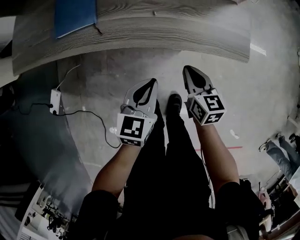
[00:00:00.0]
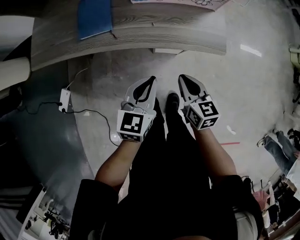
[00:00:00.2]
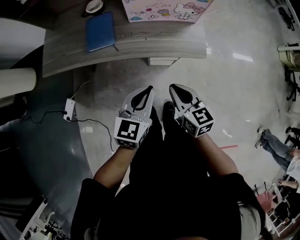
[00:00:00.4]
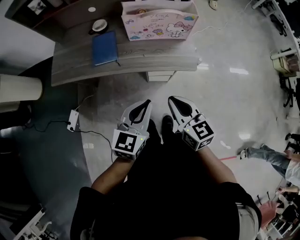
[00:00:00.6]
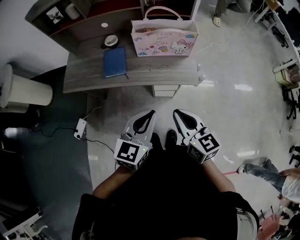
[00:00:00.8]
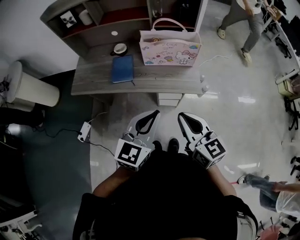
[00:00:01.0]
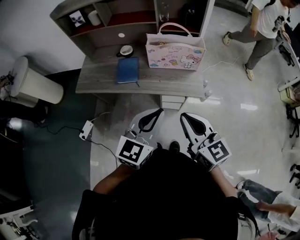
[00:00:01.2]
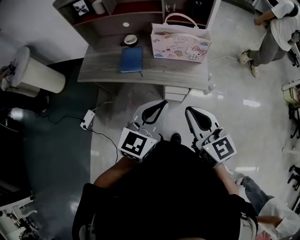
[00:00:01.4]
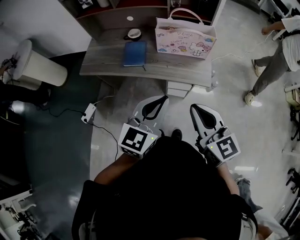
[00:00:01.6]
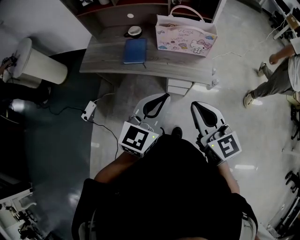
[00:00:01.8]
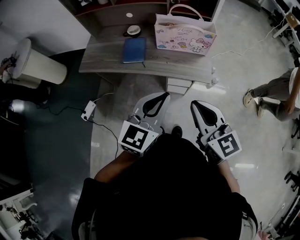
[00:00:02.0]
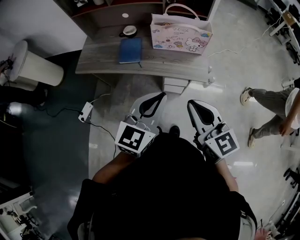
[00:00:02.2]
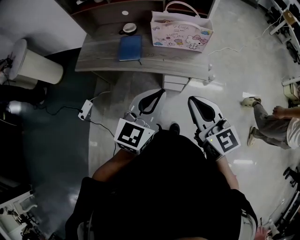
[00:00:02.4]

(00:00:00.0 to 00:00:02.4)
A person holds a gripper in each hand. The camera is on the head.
00:00:00.0 - 00:00:01.2: Both grippers travel together upward, approximately 50 cm. The right gripper rotates approximately 30 degrees; the left gripper rotates approximately 30 degrees.
00:00:01.2 - 00:00:02.4: The grippers move only a little.

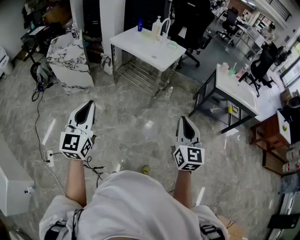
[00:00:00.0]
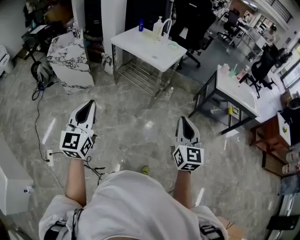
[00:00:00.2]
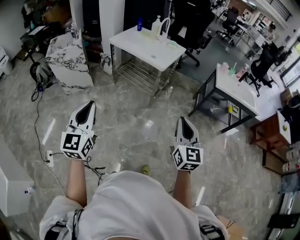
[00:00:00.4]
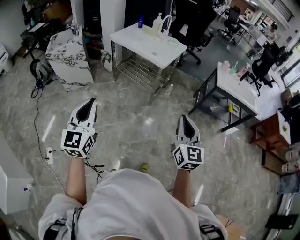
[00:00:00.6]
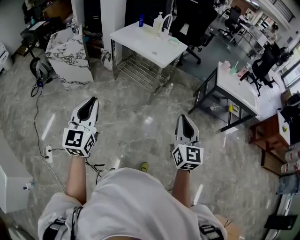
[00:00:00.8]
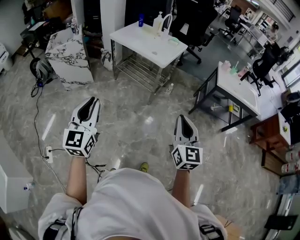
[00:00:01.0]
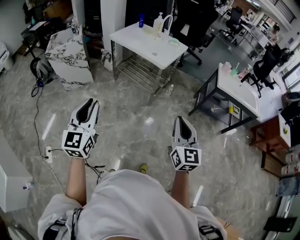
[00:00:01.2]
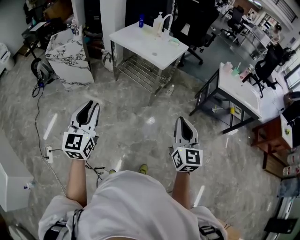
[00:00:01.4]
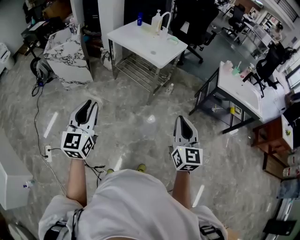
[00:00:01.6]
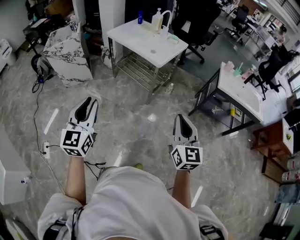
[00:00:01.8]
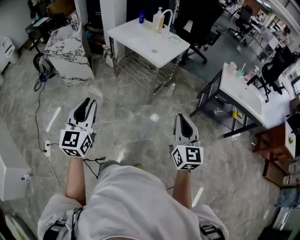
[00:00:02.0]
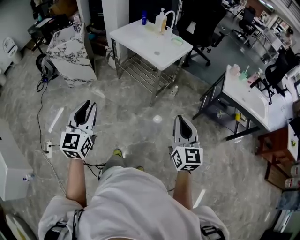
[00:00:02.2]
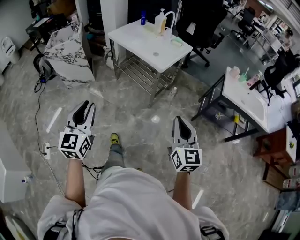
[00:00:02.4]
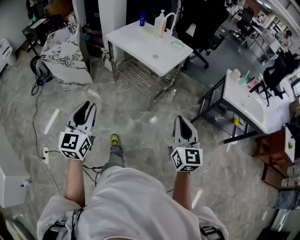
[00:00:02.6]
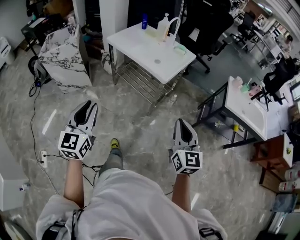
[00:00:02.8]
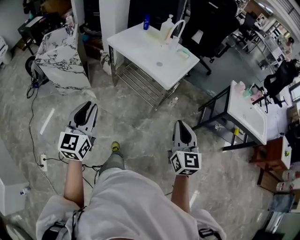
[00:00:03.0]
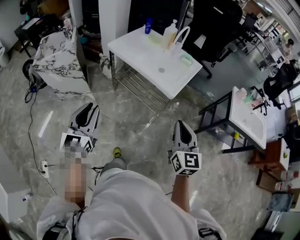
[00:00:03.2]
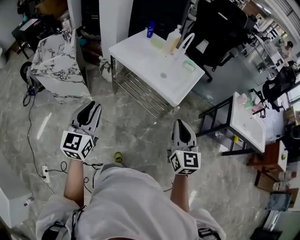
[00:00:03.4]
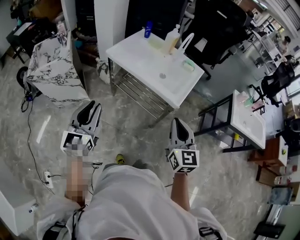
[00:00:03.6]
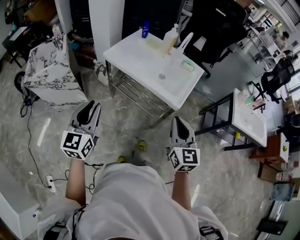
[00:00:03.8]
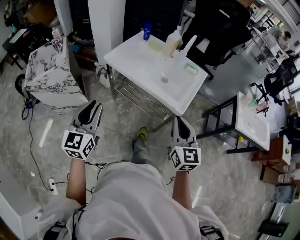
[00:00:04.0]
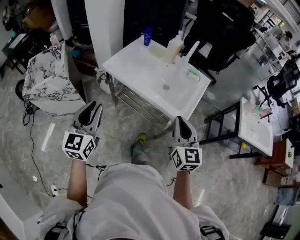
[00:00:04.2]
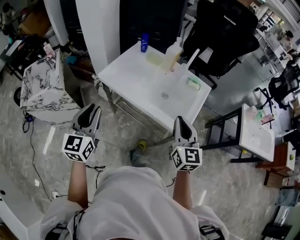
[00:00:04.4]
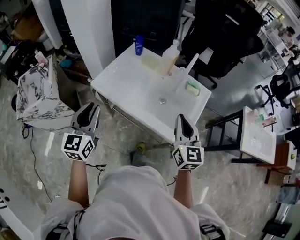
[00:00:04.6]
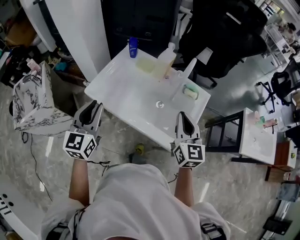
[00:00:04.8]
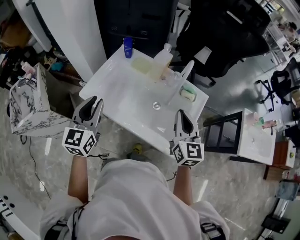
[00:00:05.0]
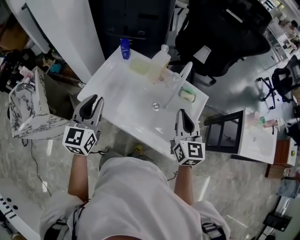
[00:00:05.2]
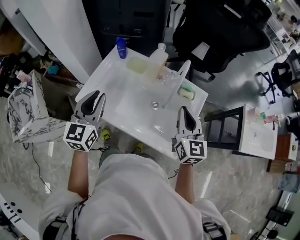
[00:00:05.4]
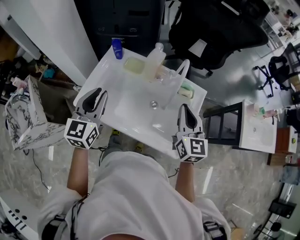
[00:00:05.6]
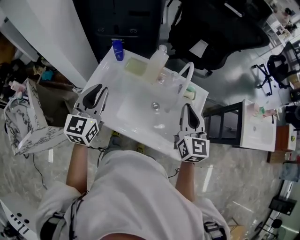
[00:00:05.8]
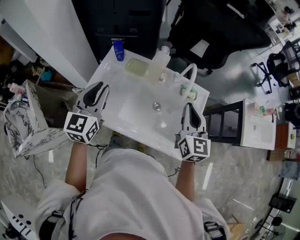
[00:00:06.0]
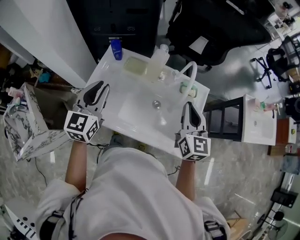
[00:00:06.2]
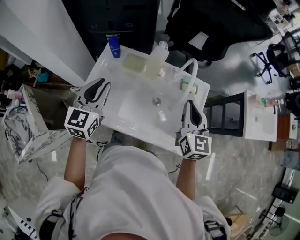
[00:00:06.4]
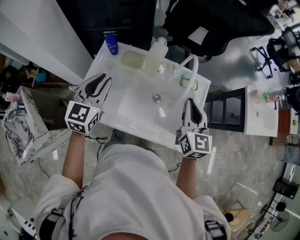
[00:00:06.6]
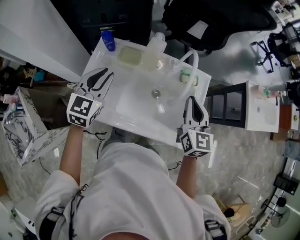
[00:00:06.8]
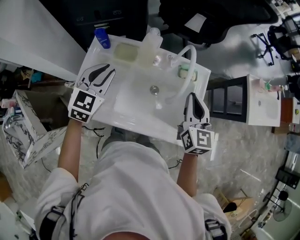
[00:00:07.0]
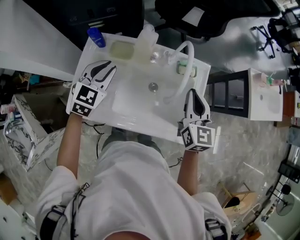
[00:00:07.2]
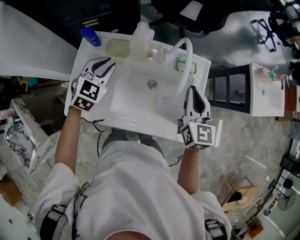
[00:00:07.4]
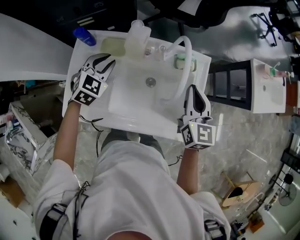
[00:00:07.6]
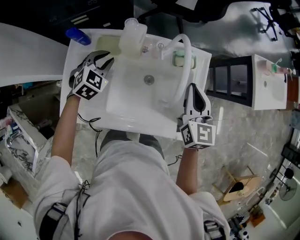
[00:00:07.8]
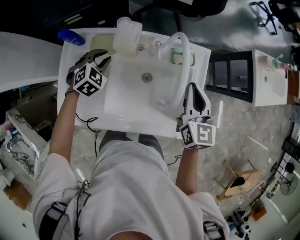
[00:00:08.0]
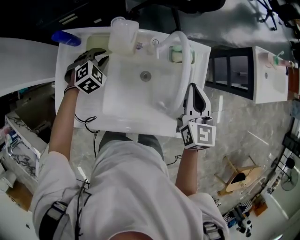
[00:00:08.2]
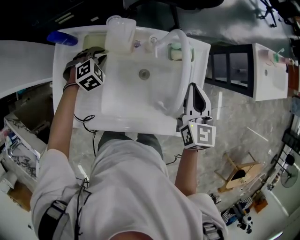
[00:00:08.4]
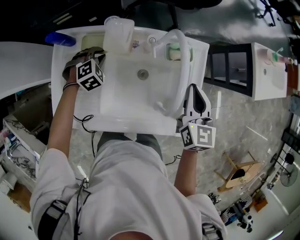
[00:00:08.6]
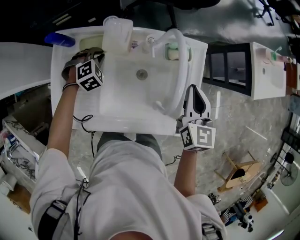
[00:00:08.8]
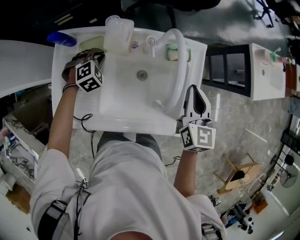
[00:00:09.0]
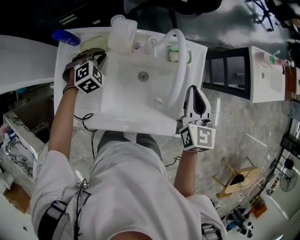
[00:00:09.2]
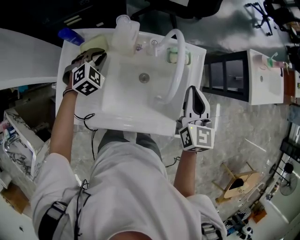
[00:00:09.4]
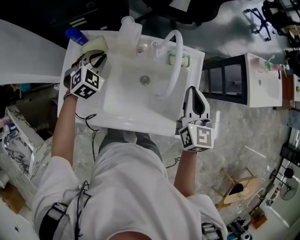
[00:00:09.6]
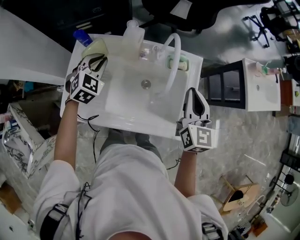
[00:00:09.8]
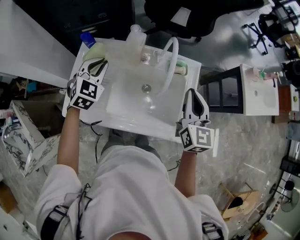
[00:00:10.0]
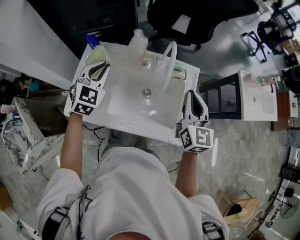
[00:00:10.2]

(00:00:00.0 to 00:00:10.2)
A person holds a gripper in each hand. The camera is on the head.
00:00:00.0 - 00:00:01.4: The left gripper ends up roughly 5 cm from where it was.
00:00:01.4 - 00:00:03.0: The grippers both shift forward by roughly 30 cm.
00:00:03.0 - 00:00:04.4: The pair of grippers is taken forward, approximately 40 cm.
00:00:04.4 - 00:00:05.8: The two grippers go some 35 cm forward.
00:00:05.8 - 00:00:07.2: The left gripper travels forward and downward by about 15 cm, and turns by about 40 degrees. Meanwhile the right gripper shifts some 5 cm downward.
00:00:07.2 - 00:00:08.8: The left gripper moves downward and forward, approximately 25 cm, and tilts its fingers approximately 30 degrees downward; the right gripper heads downward, covering approximately 5 cm.
00:00:08.8 - 00:00:10.2: The right gripper moves upward and backward, about 15 cm. The left gripper goes about 30 cm upward and backward, and points its fingers about 40 degrees further upward.

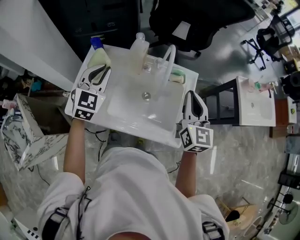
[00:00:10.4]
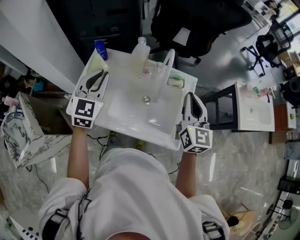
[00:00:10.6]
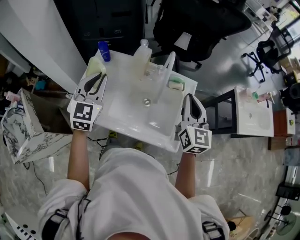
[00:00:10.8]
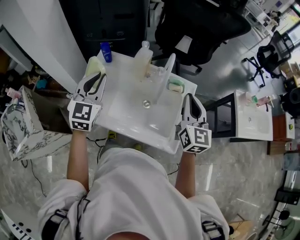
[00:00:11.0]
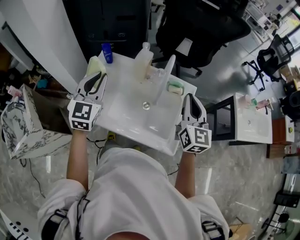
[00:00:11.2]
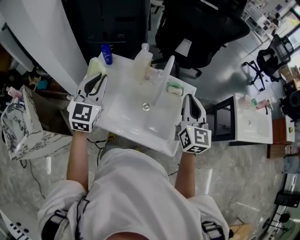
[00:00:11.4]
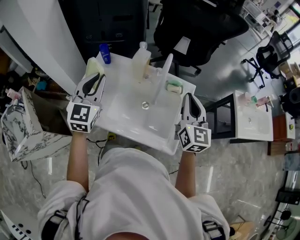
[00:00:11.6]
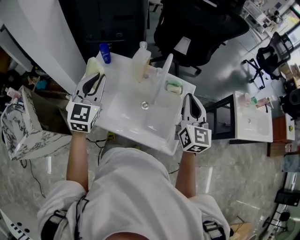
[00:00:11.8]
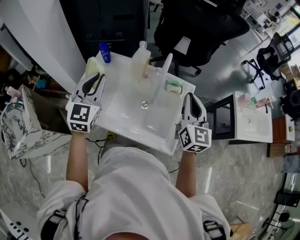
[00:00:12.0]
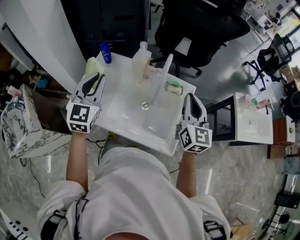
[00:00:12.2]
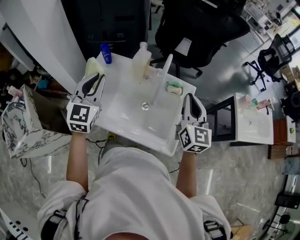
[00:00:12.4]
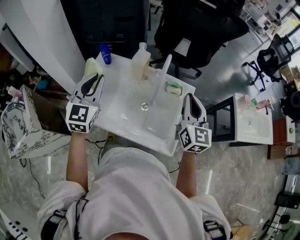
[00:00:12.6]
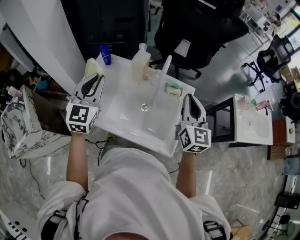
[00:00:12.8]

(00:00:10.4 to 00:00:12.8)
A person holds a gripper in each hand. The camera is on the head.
00:00:10.4 - 00:00:11.6: The left gripper shifts roughly 10 cm backward and upward.
00:00:11.6 - 00:00:12.8: Neither gripper changes place.

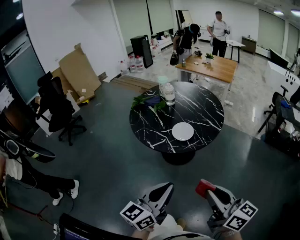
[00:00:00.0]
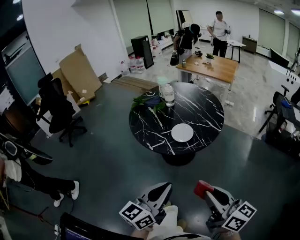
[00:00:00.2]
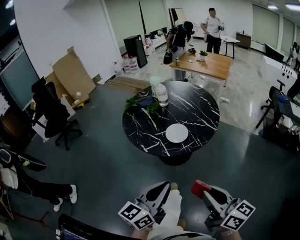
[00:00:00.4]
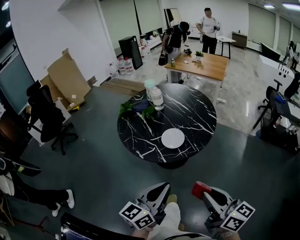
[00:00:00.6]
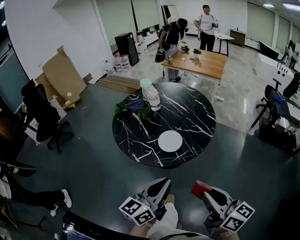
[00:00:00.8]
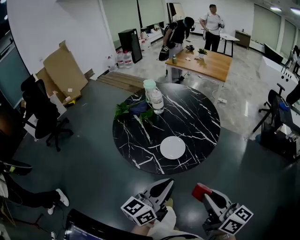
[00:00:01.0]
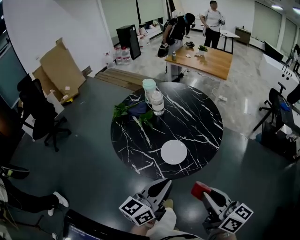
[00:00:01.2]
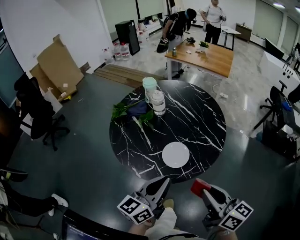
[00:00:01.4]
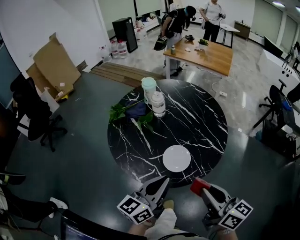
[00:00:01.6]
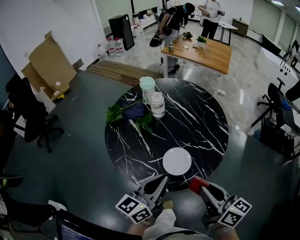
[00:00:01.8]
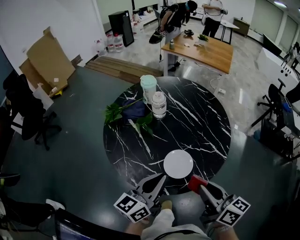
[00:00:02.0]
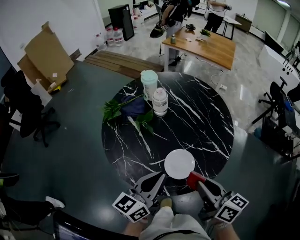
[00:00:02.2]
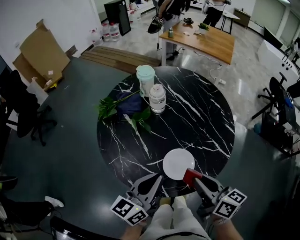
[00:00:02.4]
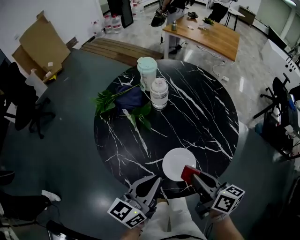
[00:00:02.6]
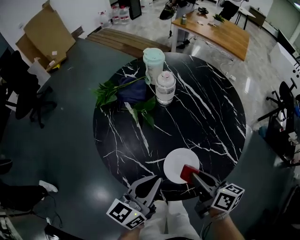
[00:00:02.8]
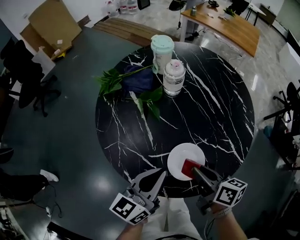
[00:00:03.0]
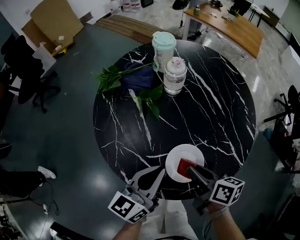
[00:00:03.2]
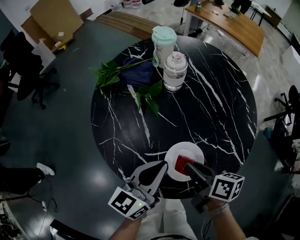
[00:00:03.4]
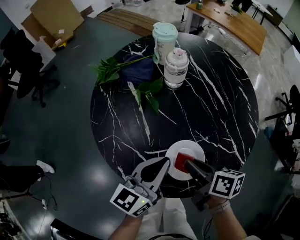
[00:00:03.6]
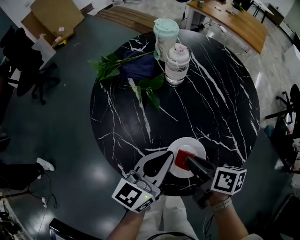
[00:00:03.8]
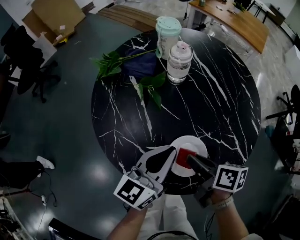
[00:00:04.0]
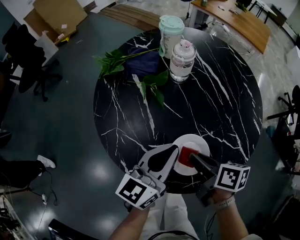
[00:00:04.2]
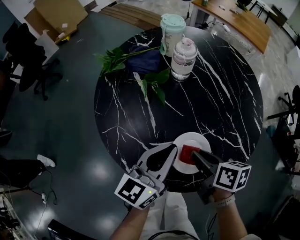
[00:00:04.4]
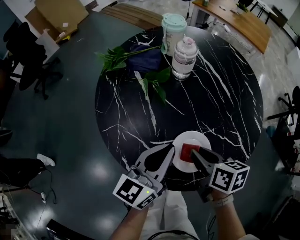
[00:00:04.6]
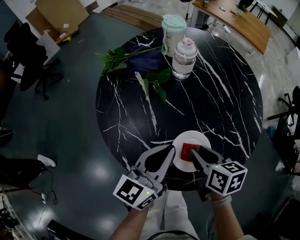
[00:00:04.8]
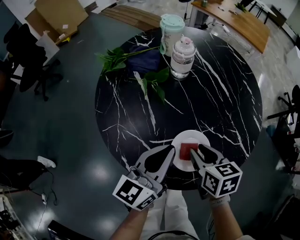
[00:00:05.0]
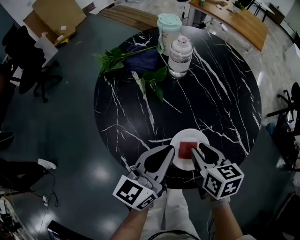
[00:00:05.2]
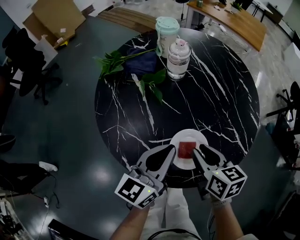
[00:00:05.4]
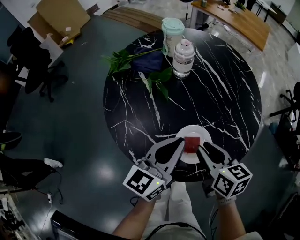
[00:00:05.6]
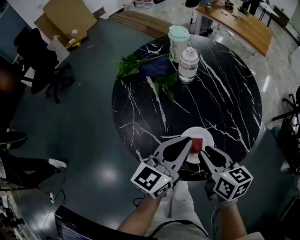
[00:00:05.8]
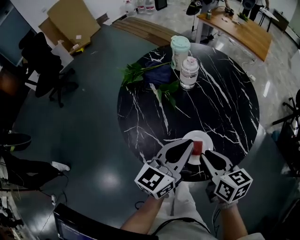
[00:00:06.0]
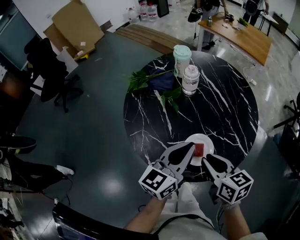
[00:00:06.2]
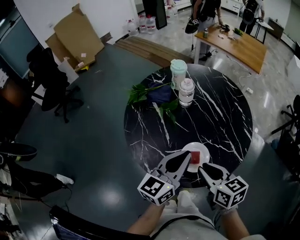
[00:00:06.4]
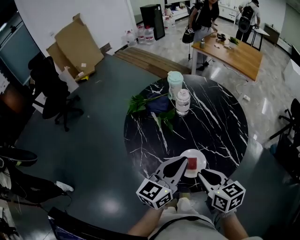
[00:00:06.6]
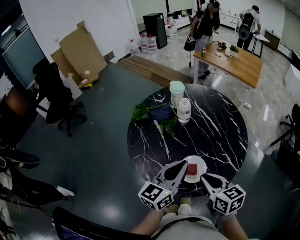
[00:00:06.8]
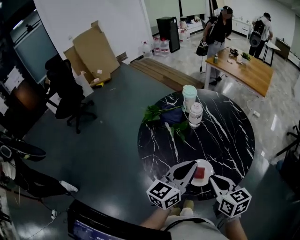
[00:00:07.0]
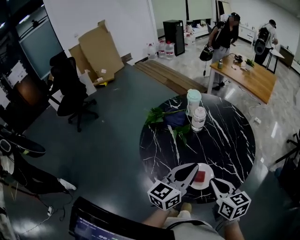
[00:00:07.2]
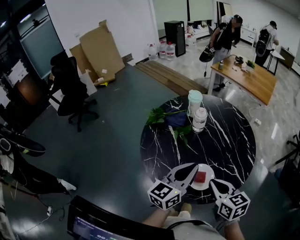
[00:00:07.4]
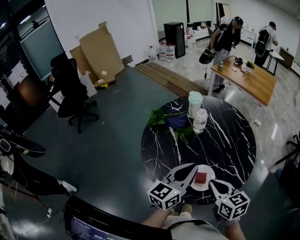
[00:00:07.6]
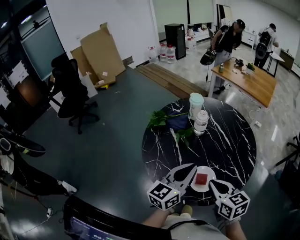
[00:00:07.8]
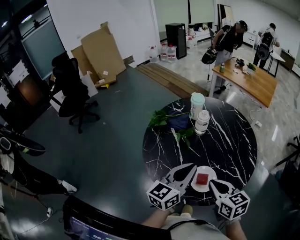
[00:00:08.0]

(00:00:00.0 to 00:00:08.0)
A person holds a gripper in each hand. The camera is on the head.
00:00:00.0 - 00:00:01.6: The grippers both shift forward by some 30 cm.
00:00:01.6 - 00:00:03.2: The right gripper moves downward and forward, roughly 25 cm, and changes its angle by approximately 30 degrees, while the left gripper goes some 15 cm downward and forward.
00:00:03.2 - 00:00:04.8: The right gripper turns by some 20 degrees.
00:00:04.8 - 00:00:06.4: The right gripper heads upward and backward, covering some 15 cm. Meanwhile the left gripper is displaced upward by roughly 10 cm.
00:00:06.4 - 00:00:08.0: The grippers stay close to where they were, moving slightly.
